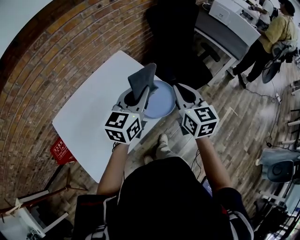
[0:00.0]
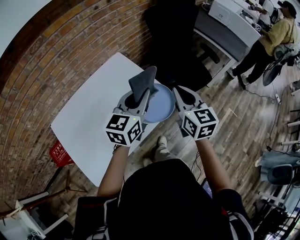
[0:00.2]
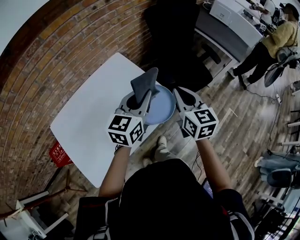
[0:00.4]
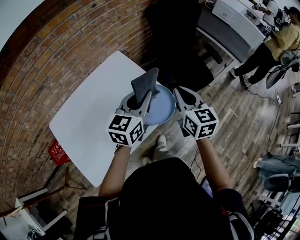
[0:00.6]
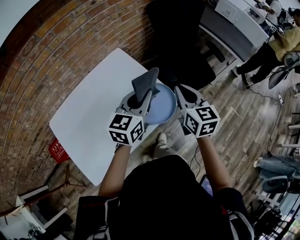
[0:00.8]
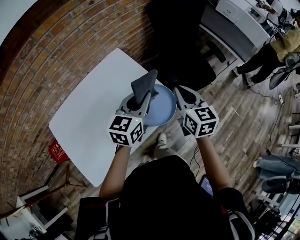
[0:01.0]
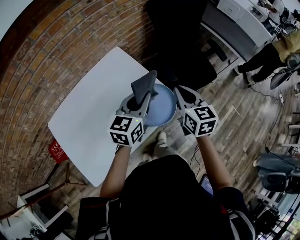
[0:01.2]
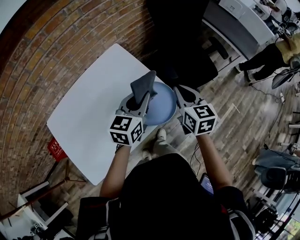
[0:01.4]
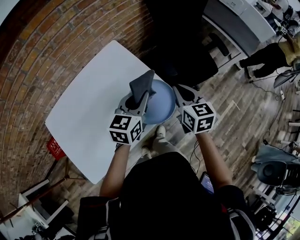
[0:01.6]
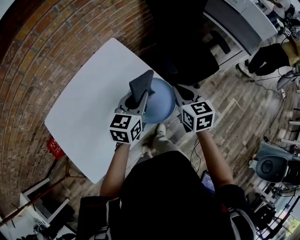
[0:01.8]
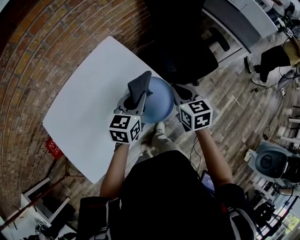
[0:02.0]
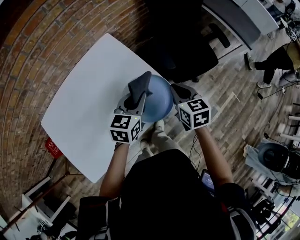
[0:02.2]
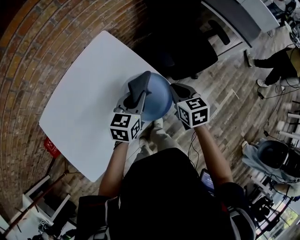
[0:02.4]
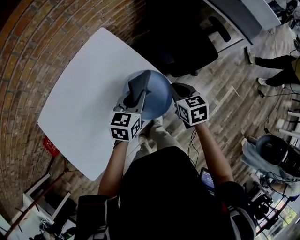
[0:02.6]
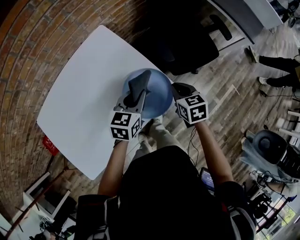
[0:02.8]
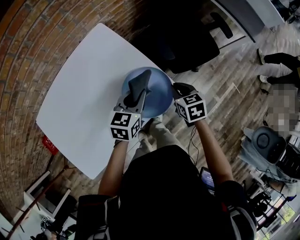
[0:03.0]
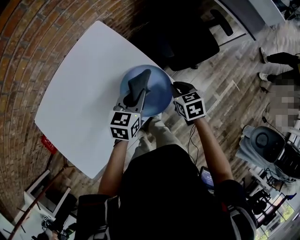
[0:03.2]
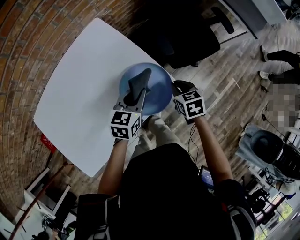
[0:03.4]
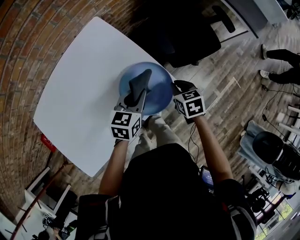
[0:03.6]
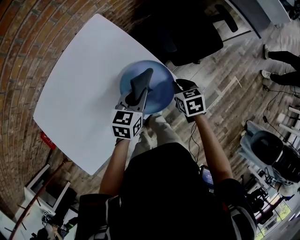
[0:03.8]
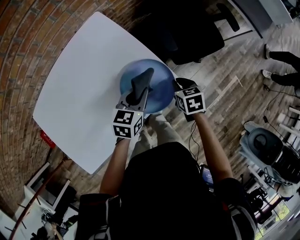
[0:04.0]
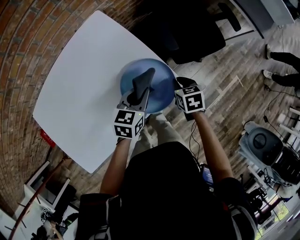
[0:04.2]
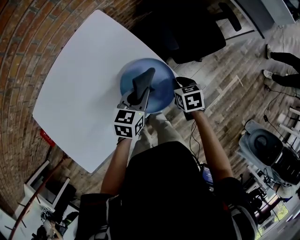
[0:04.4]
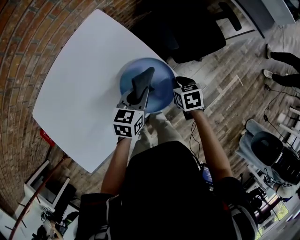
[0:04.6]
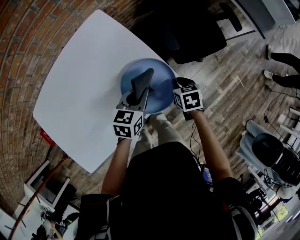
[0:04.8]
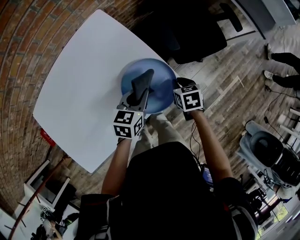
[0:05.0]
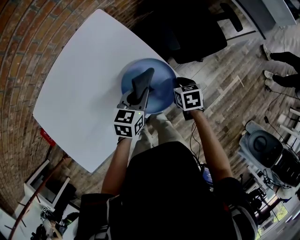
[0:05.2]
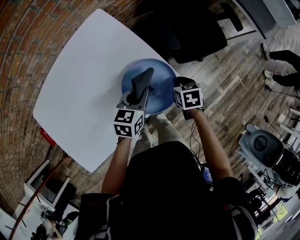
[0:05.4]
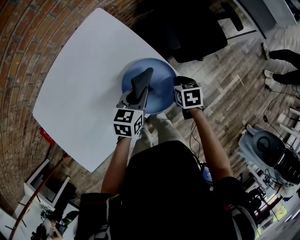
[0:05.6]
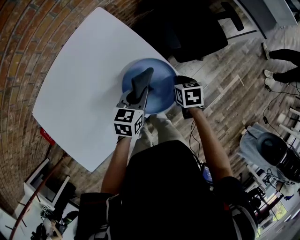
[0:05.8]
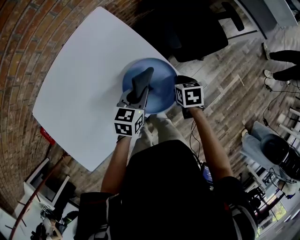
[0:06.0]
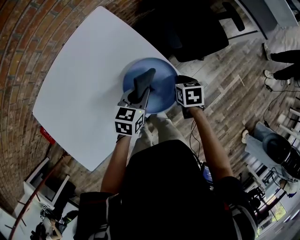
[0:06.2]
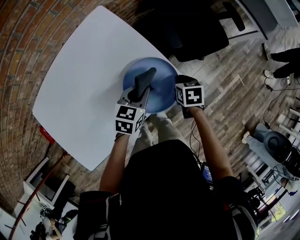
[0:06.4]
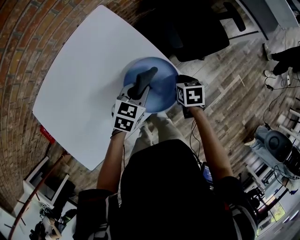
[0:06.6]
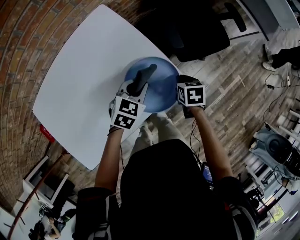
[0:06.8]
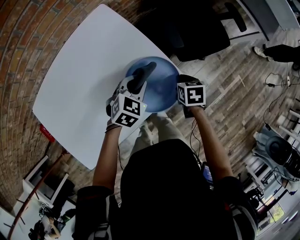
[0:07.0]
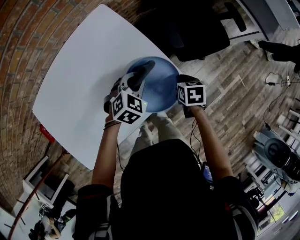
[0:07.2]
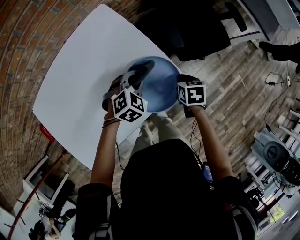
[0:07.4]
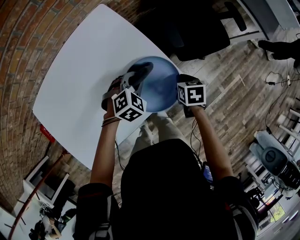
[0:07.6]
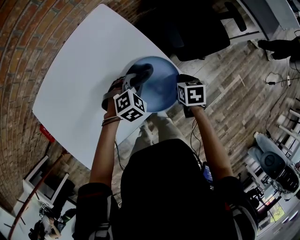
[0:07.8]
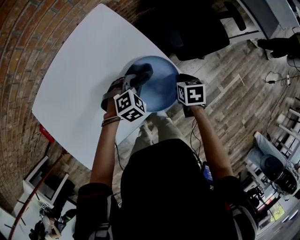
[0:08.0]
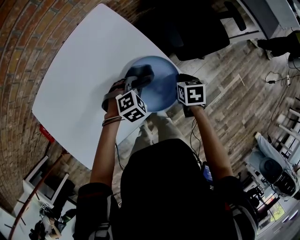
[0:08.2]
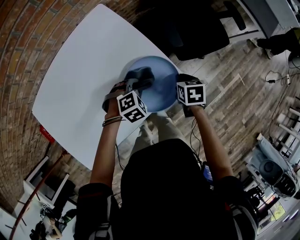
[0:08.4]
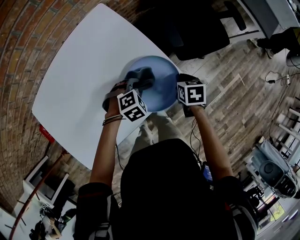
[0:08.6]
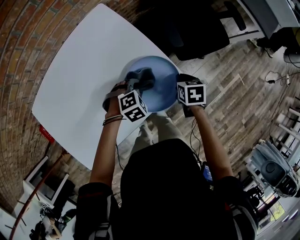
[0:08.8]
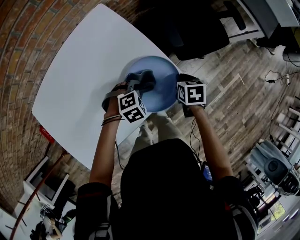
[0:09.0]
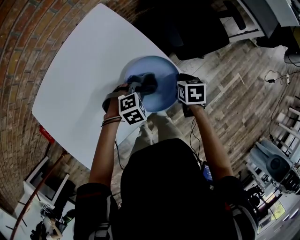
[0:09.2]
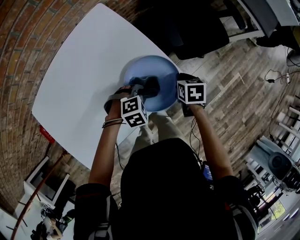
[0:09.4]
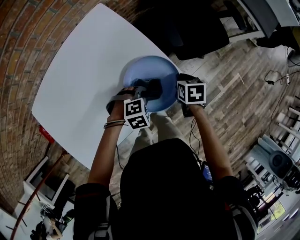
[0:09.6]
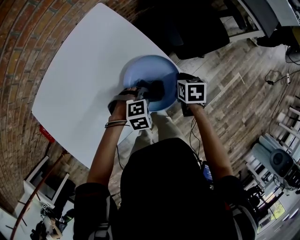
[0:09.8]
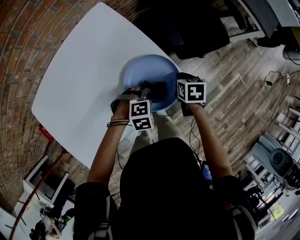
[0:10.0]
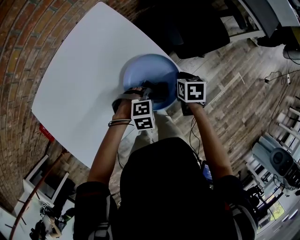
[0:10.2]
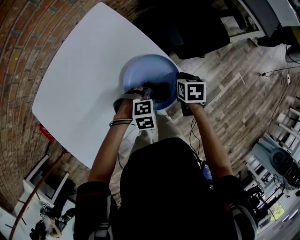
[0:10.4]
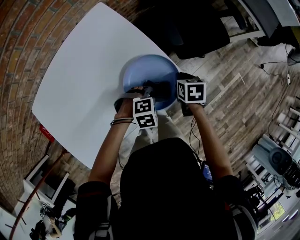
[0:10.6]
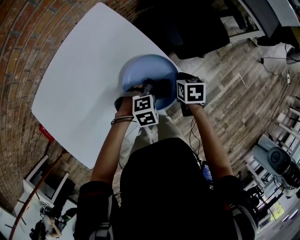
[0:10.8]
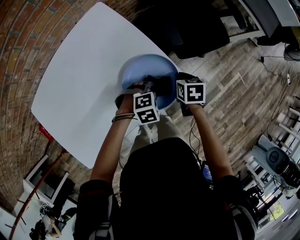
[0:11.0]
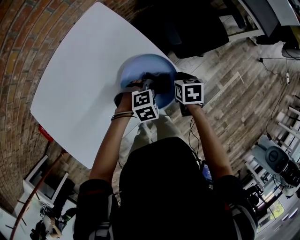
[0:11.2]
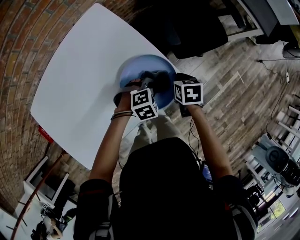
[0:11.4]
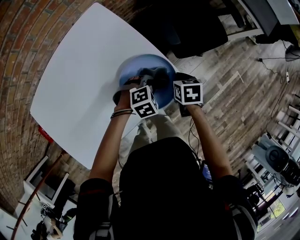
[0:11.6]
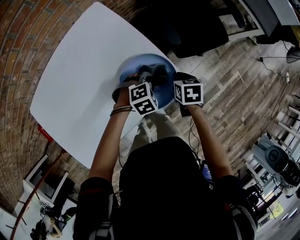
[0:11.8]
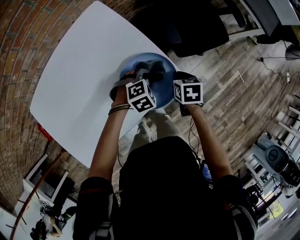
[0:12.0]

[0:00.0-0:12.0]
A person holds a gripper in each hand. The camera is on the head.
0:00.0 to 0:01.6: The grippers both shift downward and forward by roughly 15 cm.
0:01.6 to 0:03.0: Both grippers move downward, about 15 cm. The right gripper rotates some 20 degrees.
0:03.0 to 0:04.4: The right gripper heads downward, covering approximately 5 cm. Meanwhile the left gripper moves some 5 cm.
0:04.4 to 0:06.0: The grippers move only a little.
0:06.0 to 0:07.6: The left gripper twists about 50 degrees clockwise, seen from behind.
0:07.6 to 0:09.0: The left gripper shifts about 5 cm backward and downward.
0:09.0 to 0:10.4: The left gripper moves to the right, roughly 5 cm.
0:10.4 to 0:12.0: The left gripper is displaced forward by roughly 10 cm.

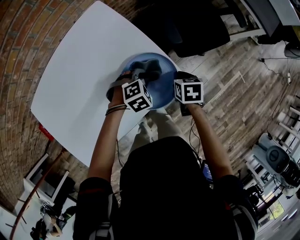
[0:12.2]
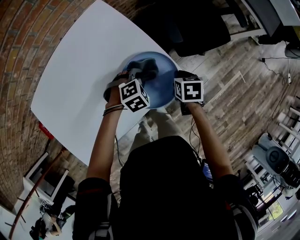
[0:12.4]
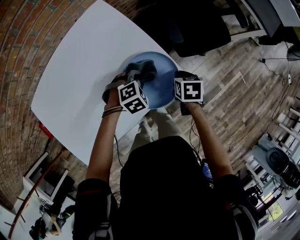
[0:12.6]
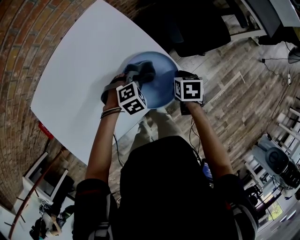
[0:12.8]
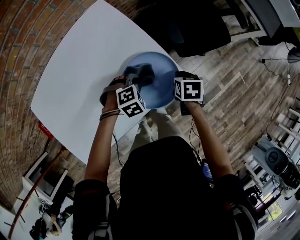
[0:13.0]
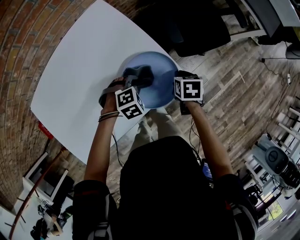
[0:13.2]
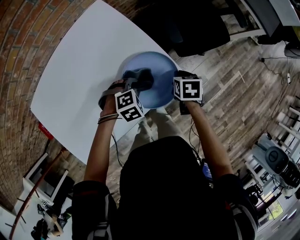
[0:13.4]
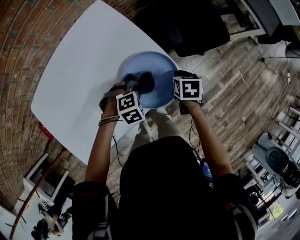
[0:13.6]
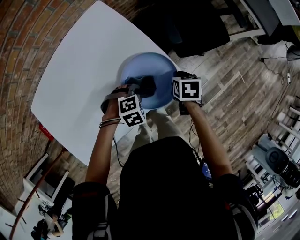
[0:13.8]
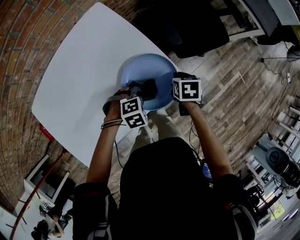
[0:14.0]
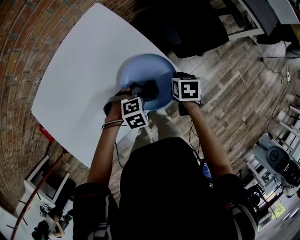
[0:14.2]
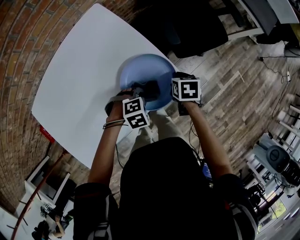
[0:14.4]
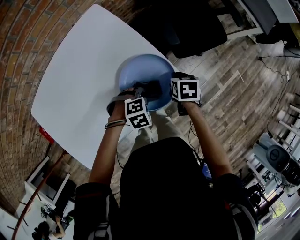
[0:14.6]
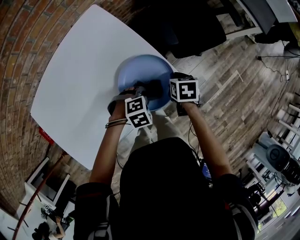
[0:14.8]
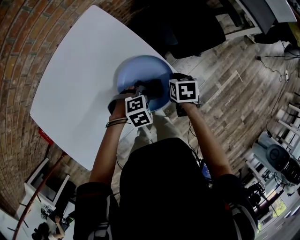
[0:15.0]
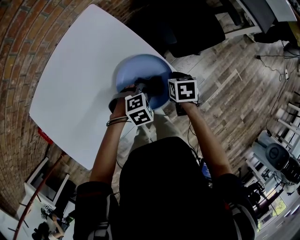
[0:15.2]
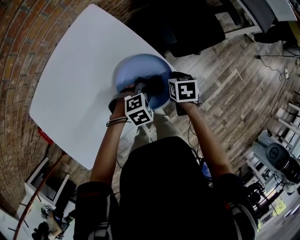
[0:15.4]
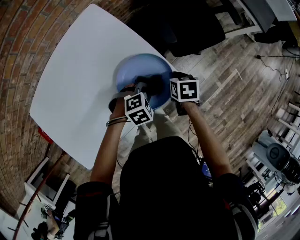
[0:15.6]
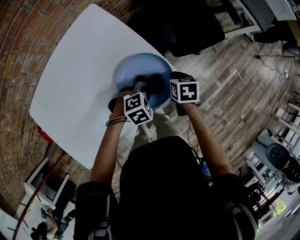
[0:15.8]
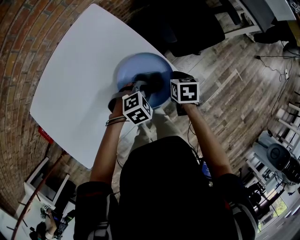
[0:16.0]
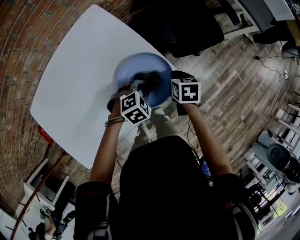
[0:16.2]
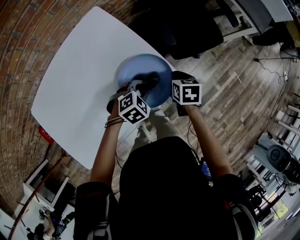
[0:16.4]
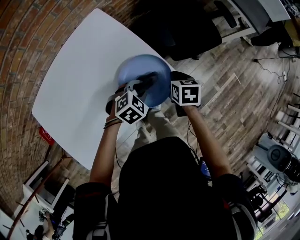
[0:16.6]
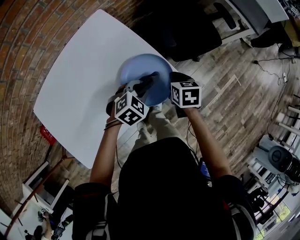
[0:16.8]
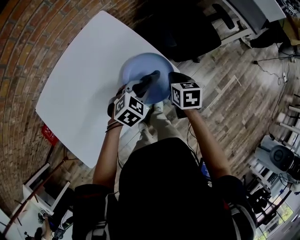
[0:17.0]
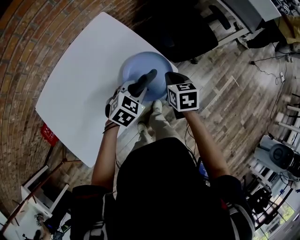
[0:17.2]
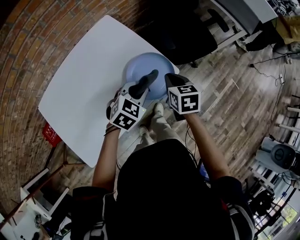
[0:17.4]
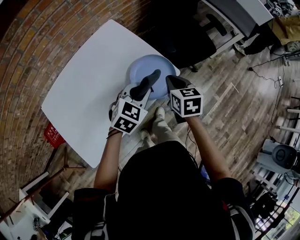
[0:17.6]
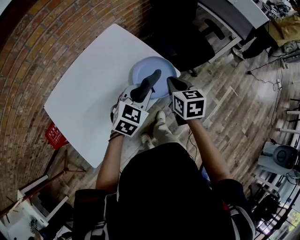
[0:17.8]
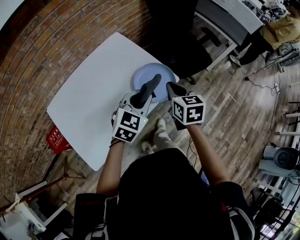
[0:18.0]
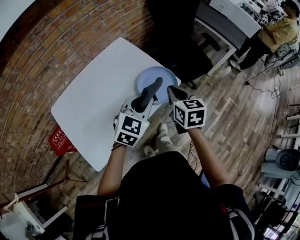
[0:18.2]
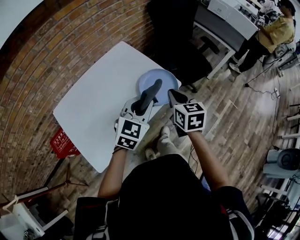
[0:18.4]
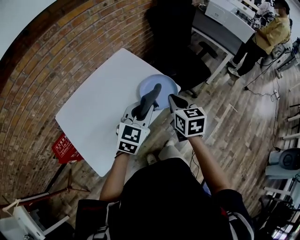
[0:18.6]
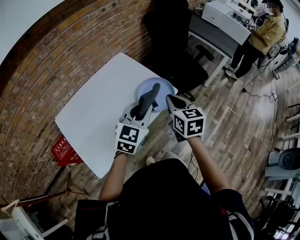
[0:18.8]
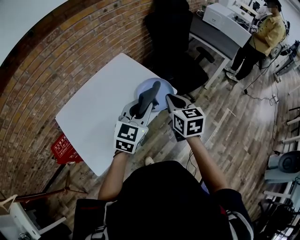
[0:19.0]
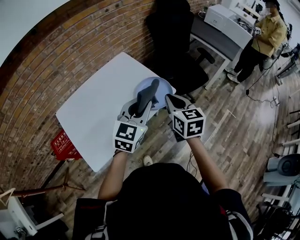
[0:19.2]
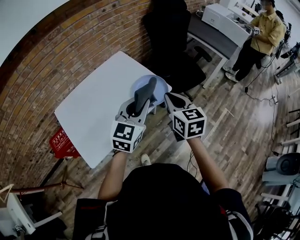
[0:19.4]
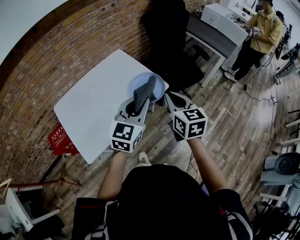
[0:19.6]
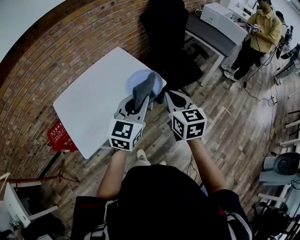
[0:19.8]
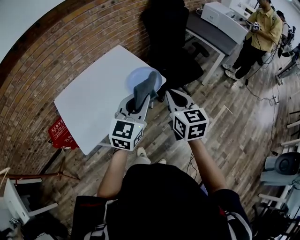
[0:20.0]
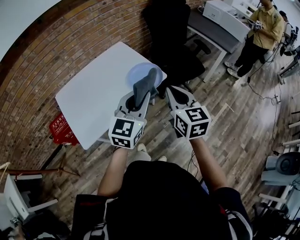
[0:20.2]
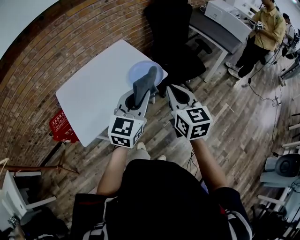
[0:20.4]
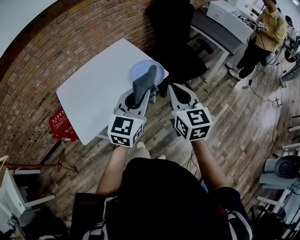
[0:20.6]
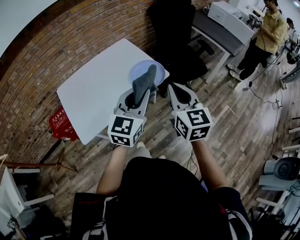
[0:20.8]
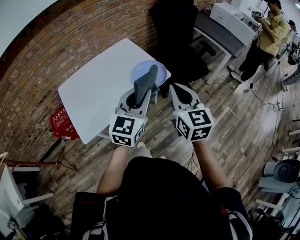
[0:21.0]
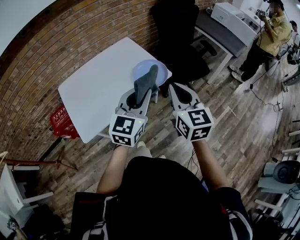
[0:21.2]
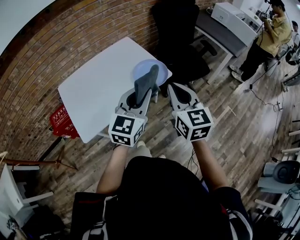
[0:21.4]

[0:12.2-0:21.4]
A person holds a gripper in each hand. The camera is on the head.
0:12.2 to 0:13.8: The left gripper moves backward, some 10 cm.
0:13.8 to 0:15.2: The left gripper moves some 5 cm.
0:15.2 to 0:16.8: Both grippers travel together upward, some 5 cm. The left gripper rotates some 20 degrees.
0:16.8 to 0:18.4: The grippers both shift upward and backward by about 25 cm. The right gripper rotates about 30 degrees, while the left gripper angles its fingers upward, by roughly 30 degrees.
0:18.4 to 0:19.8: The left gripper travels upward, backward and to the right by approximately 15 cm. Meanwhile the right gripper shifts roughly 15 cm backward, upward and to the right.
0:19.8 to 0:21.4: The right gripper ends up some 5 cm from where it was.

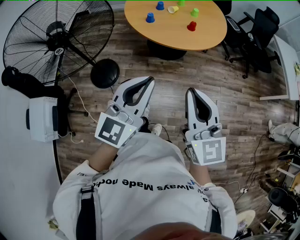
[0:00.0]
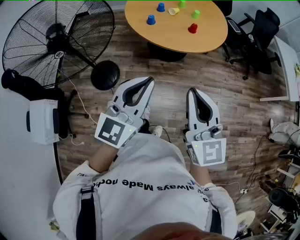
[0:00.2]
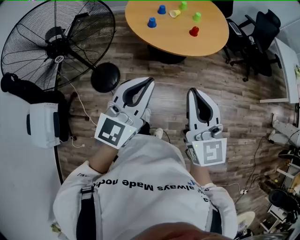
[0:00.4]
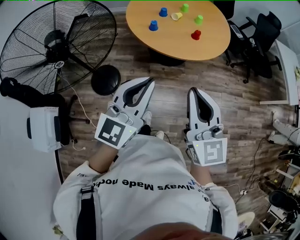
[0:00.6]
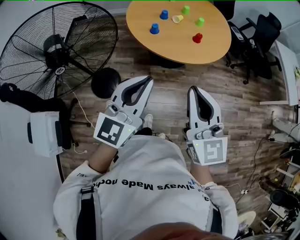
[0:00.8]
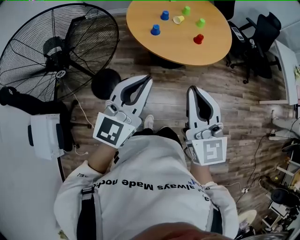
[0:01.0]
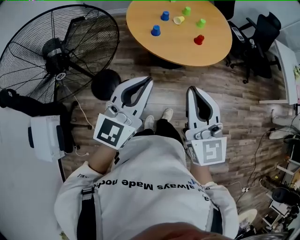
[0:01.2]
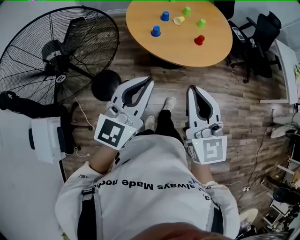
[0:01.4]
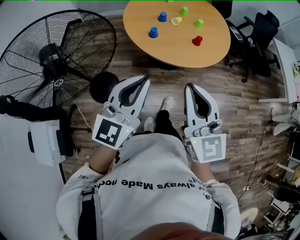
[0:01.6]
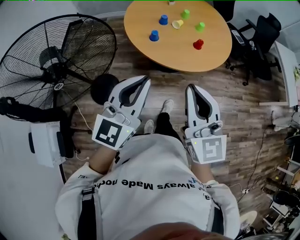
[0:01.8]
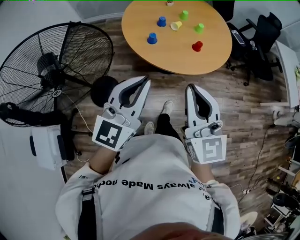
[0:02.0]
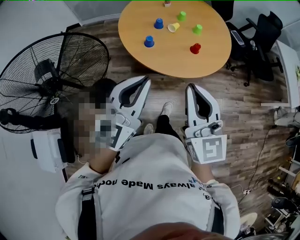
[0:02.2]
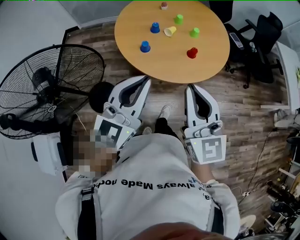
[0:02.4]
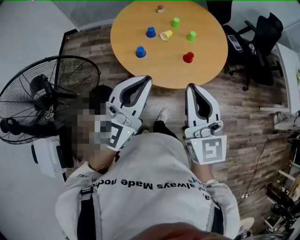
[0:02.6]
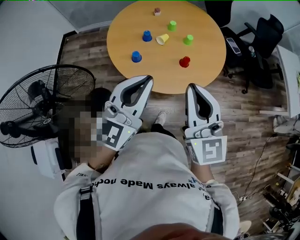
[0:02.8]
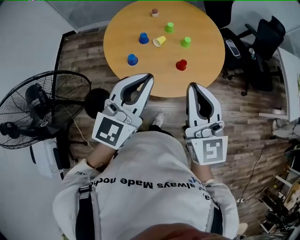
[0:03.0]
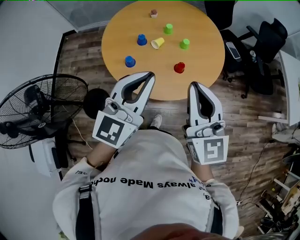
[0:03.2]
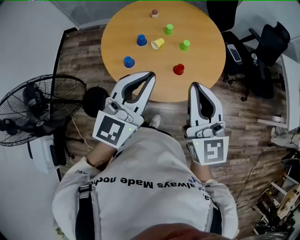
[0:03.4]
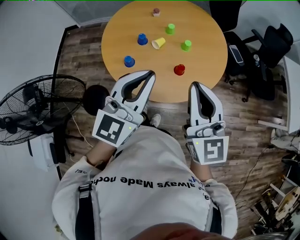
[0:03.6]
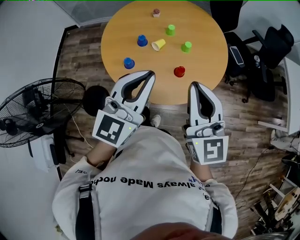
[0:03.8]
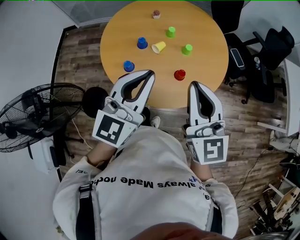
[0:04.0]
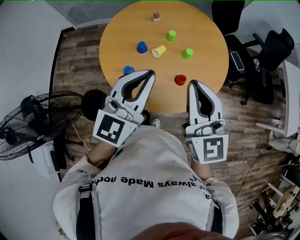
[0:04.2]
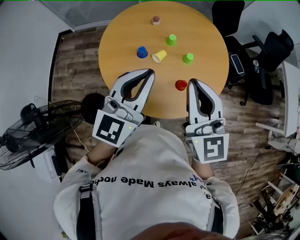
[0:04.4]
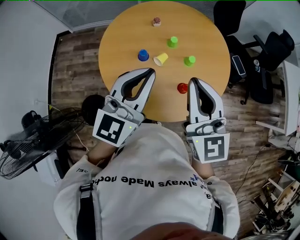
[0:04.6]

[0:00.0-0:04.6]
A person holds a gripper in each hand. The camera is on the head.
0:00.0 to 0:01.6: The two grippers go about 20 cm forward and to the left.
0:01.6 to 0:03.0: The grippers both shift forward and to the right by some 30 cm.
0:03.0 to 0:04.6: Both grippers travel together forward, about 20 cm.
